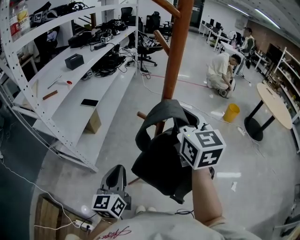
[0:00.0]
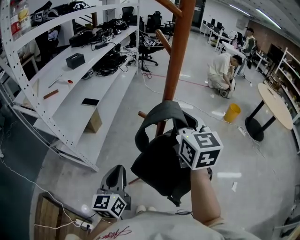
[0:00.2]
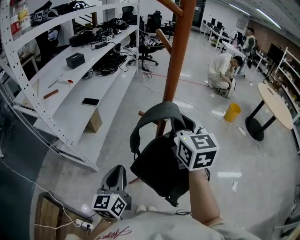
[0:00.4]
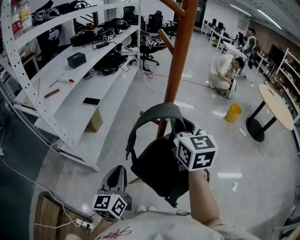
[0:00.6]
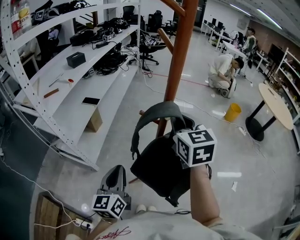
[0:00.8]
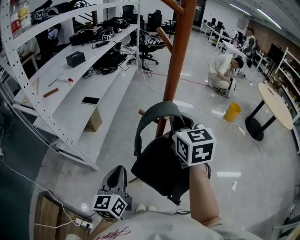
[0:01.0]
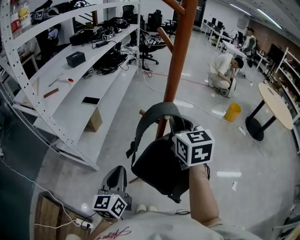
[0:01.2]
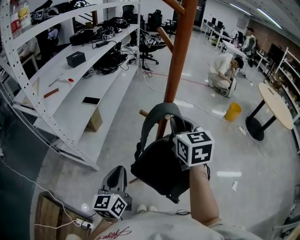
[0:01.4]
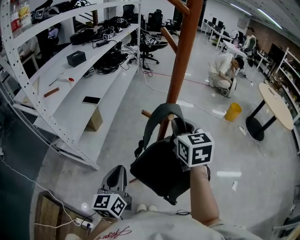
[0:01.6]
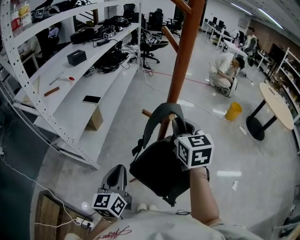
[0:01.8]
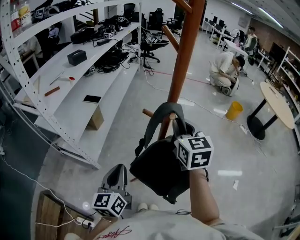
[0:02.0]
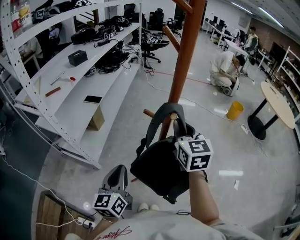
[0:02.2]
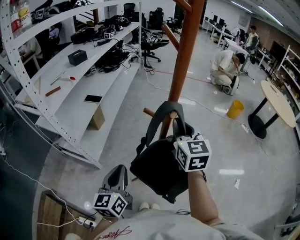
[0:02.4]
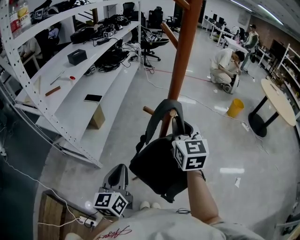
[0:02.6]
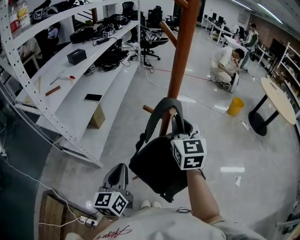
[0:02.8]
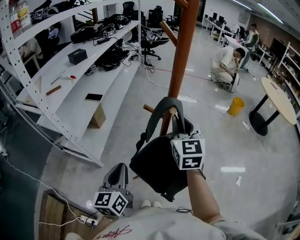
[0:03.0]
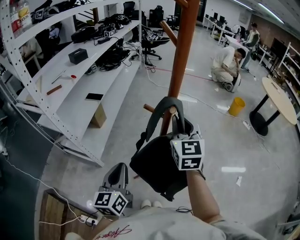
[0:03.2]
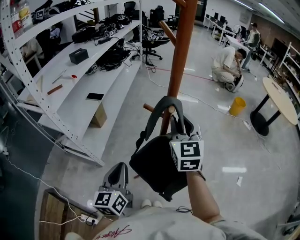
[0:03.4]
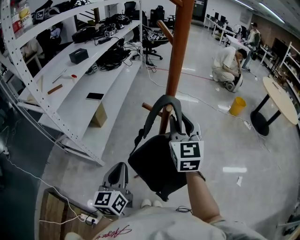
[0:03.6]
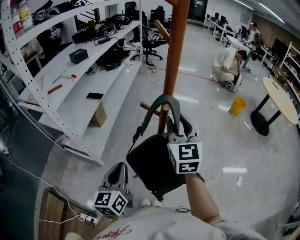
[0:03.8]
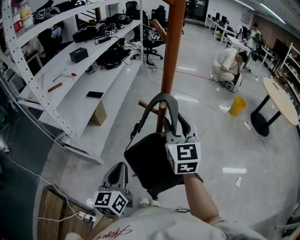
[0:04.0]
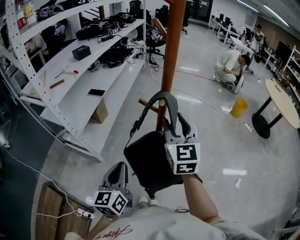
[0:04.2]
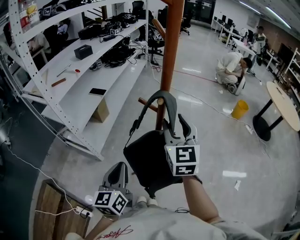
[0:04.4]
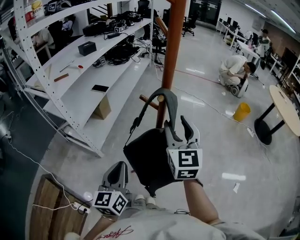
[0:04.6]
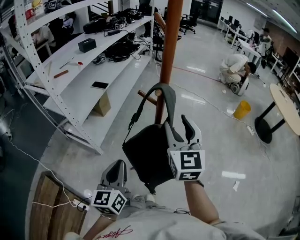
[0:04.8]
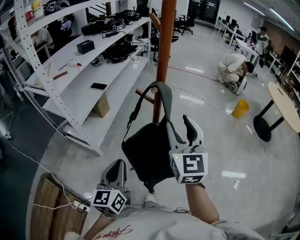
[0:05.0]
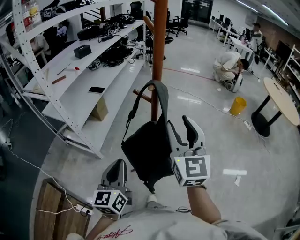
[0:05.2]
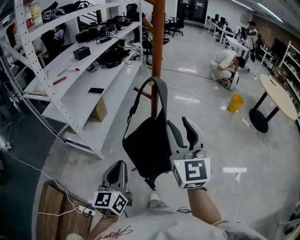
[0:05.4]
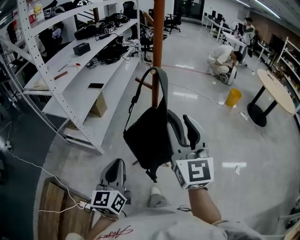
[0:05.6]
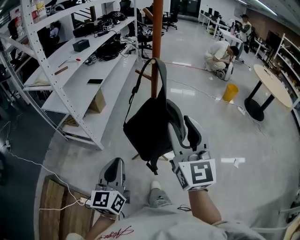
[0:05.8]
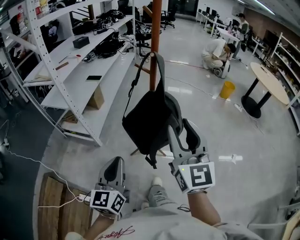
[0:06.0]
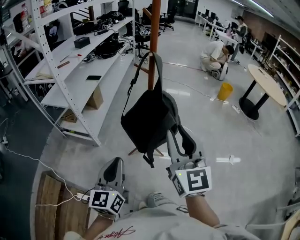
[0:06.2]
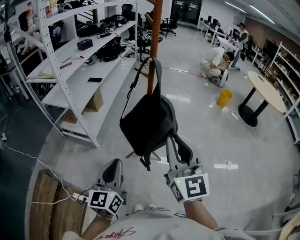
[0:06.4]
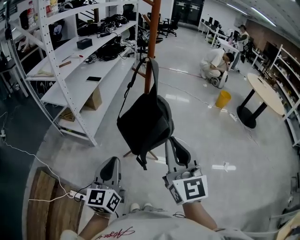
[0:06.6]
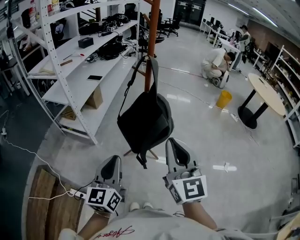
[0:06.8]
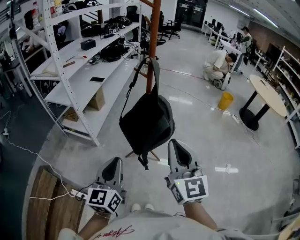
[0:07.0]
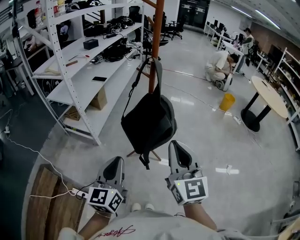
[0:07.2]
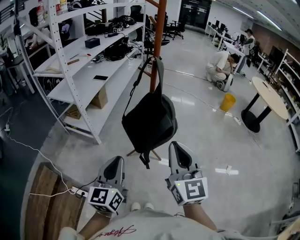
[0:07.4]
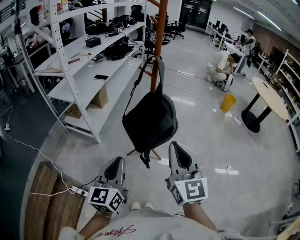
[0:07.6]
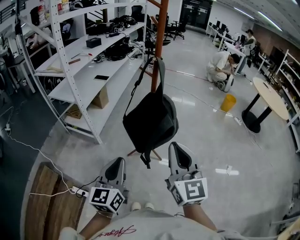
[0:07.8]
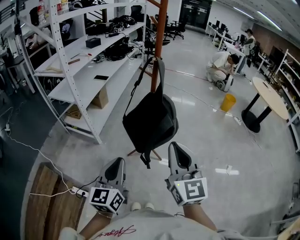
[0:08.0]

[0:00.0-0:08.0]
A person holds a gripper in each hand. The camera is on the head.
0:00.0 to 0:01.6: The right gripper is displaced downward by roughly 10 cm.
0:01.6 to 0:03.2: The grippers move only a little.
0:03.2 to 0:04.8: The two grippers go approximately 5 cm backward. The right gripper opens up.
0:04.8 to 0:06.4: The two grippers go about 25 cm backward. The right gripper closes up.
0:06.4 to 0:08.0: There are only small adjustments of the grippers.

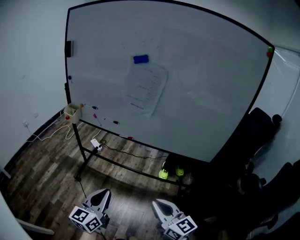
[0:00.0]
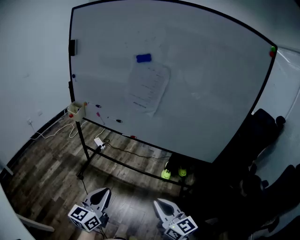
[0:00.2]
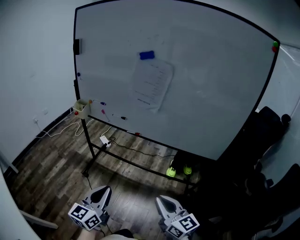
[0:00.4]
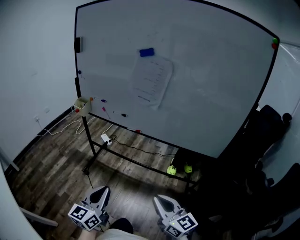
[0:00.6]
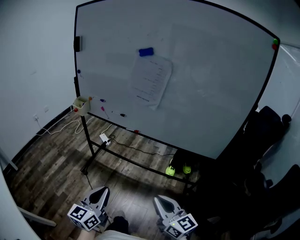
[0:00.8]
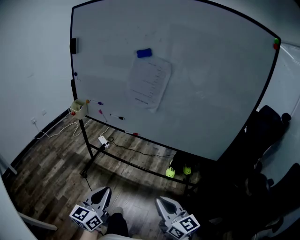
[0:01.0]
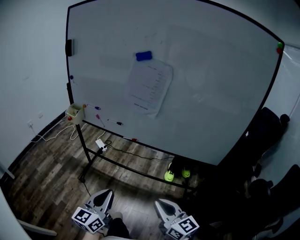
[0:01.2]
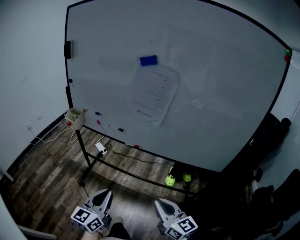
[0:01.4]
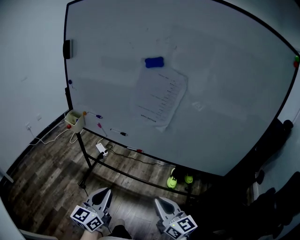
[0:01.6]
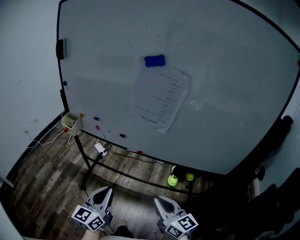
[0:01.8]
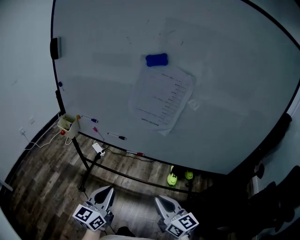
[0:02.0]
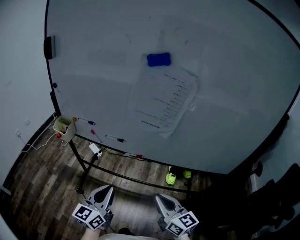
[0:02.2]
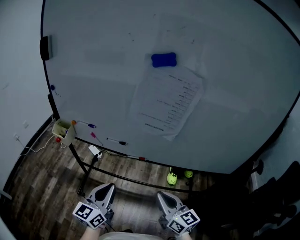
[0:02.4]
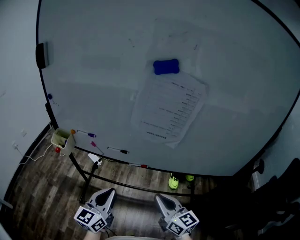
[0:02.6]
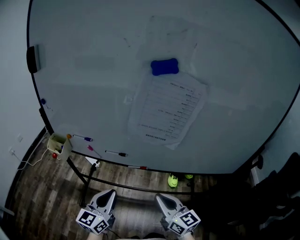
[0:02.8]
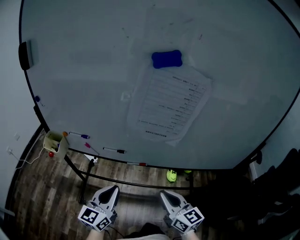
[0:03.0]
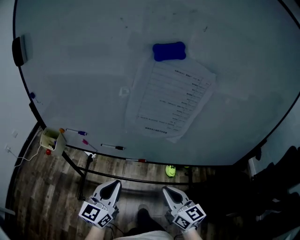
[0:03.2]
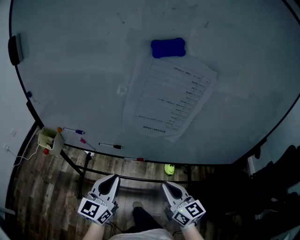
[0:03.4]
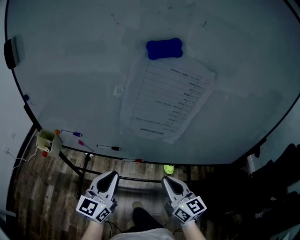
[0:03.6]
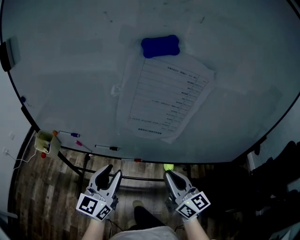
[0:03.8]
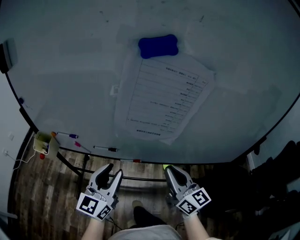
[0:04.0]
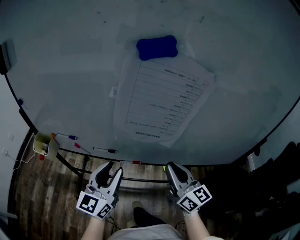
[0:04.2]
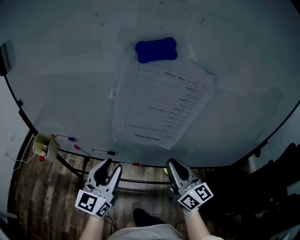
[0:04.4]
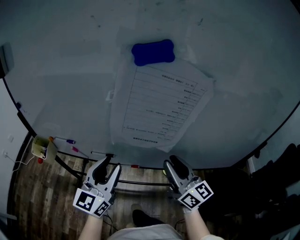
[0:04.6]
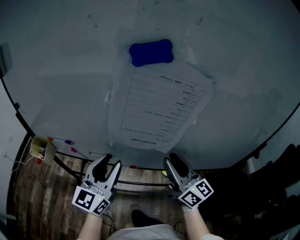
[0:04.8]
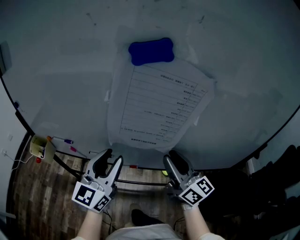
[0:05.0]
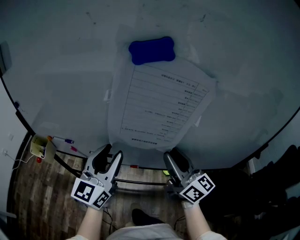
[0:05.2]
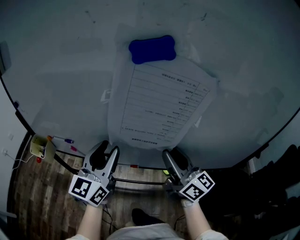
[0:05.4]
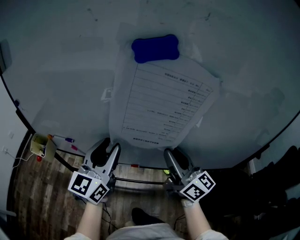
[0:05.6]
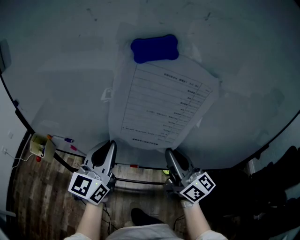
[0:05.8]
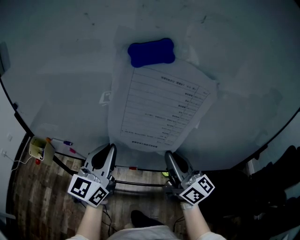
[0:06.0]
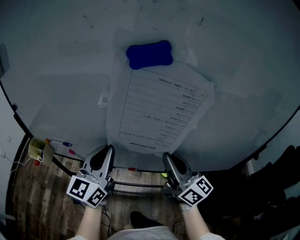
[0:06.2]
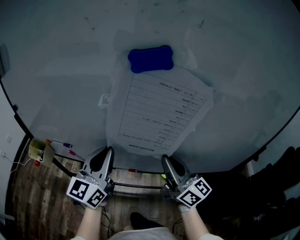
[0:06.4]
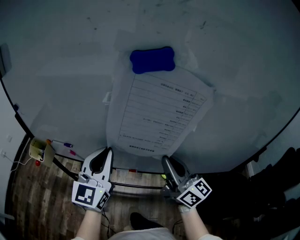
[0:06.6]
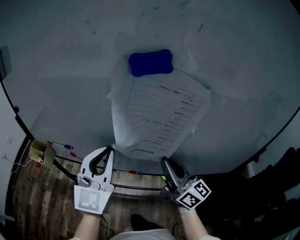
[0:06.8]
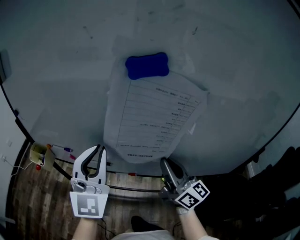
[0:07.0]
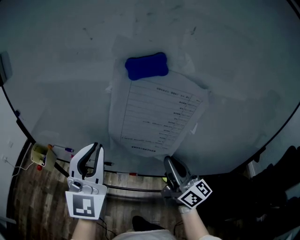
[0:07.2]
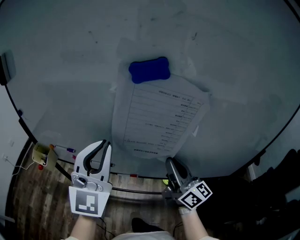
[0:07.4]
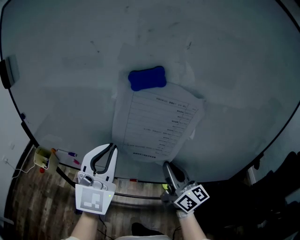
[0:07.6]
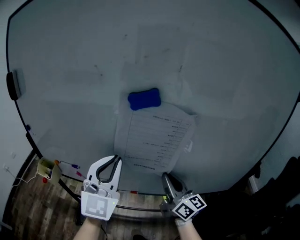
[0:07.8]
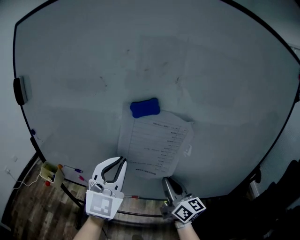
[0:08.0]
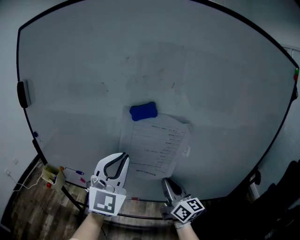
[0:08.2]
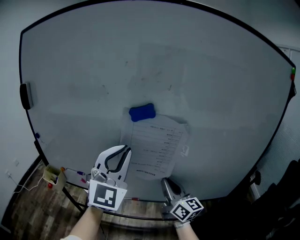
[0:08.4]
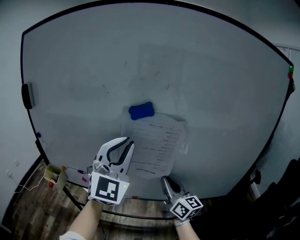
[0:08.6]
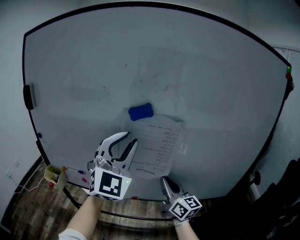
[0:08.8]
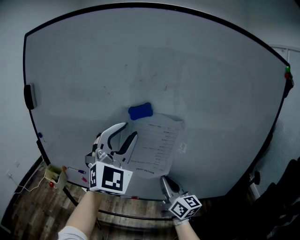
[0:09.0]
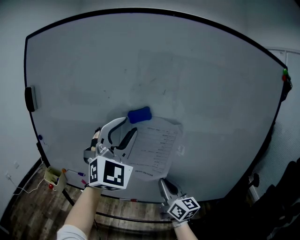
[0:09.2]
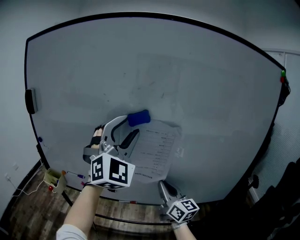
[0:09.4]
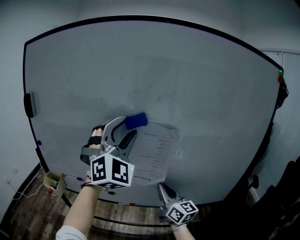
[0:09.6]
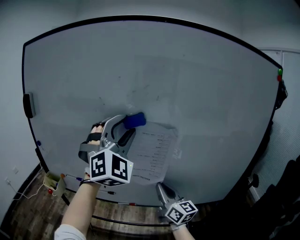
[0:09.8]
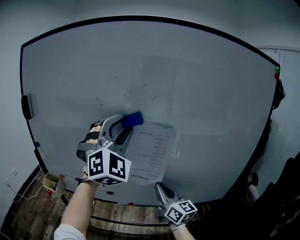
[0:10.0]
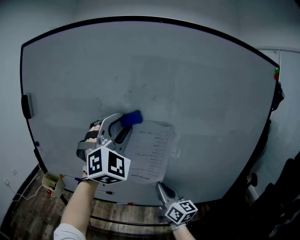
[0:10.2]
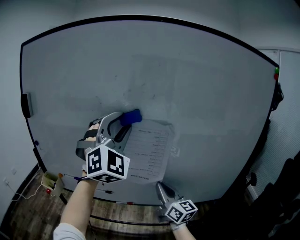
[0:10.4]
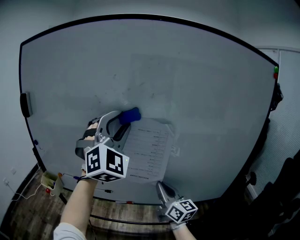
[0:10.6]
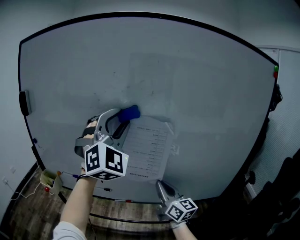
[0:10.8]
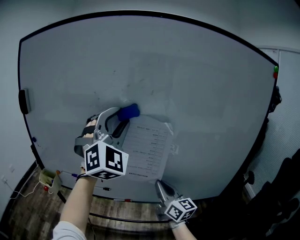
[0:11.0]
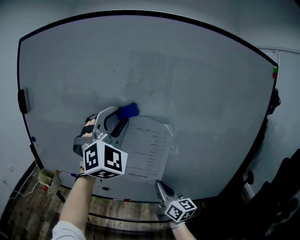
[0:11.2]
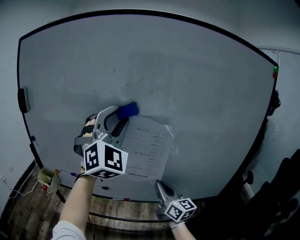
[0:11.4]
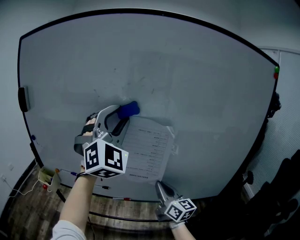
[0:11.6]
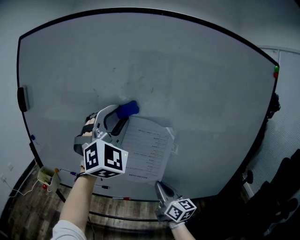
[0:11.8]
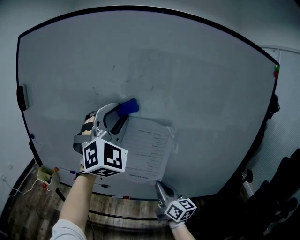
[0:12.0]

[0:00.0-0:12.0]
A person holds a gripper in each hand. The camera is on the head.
0:00.0 to 0:01.6: Both grippers travel together forward, about 15 cm.
0:01.6 to 0:03.0: The two grippers go approximately 20 cm forward.
0:03.0 to 0:04.4: The left gripper shifts about 15 cm forward and upward, and opens up; the right gripper goes some 15 cm forward, upward and to the right.
0:04.4 to 0:06.0: The right gripper changes place by roughly 5 cm, and opens and closes again. Meanwhile the left gripper shifts some 10 cm forward and upward, and closes.
0:06.0 to 0:07.6: The left gripper moves upward, approximately 10 cm, and rotates about 30 degrees.
0:07.6 to 0:09.0: The left gripper heads upward and to the right, covering about 15 cm, rotates about 30 degrees, and opens.
0:09.0 to 0:10.4: The left gripper moves about 5 cm.
0:10.4 to 0:12.0: The grippers stay close to where they were, moving slightly.

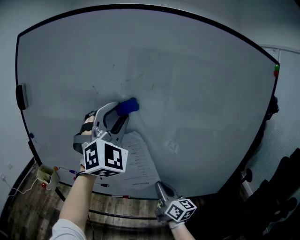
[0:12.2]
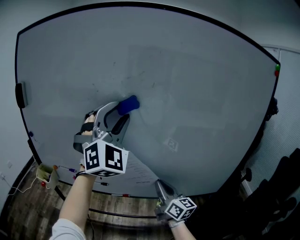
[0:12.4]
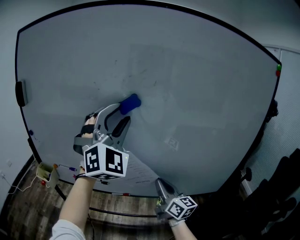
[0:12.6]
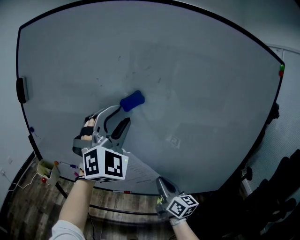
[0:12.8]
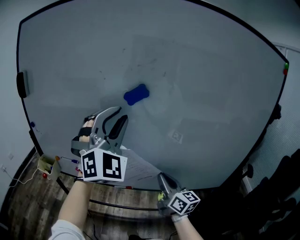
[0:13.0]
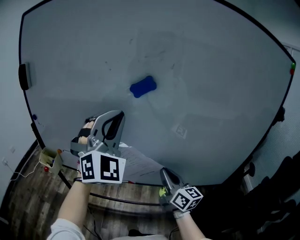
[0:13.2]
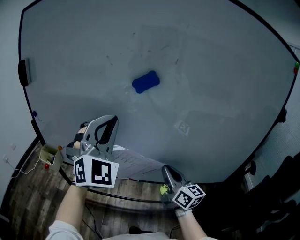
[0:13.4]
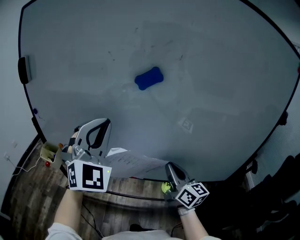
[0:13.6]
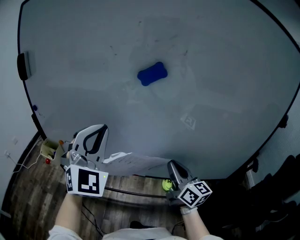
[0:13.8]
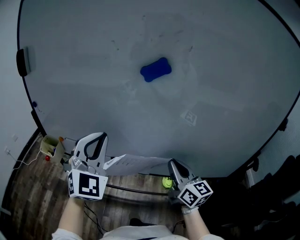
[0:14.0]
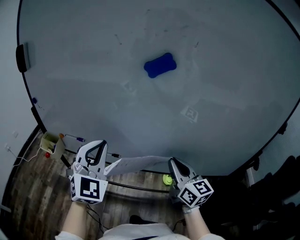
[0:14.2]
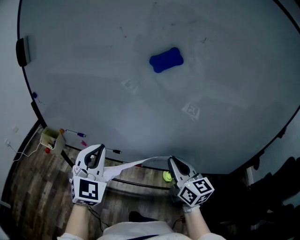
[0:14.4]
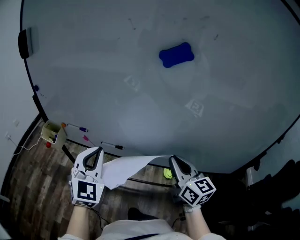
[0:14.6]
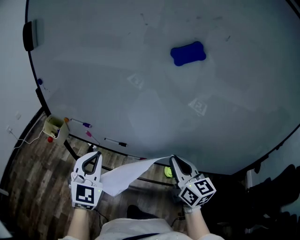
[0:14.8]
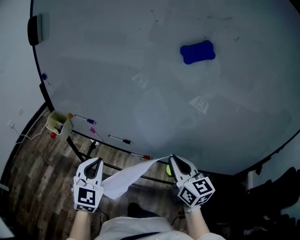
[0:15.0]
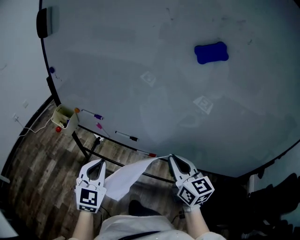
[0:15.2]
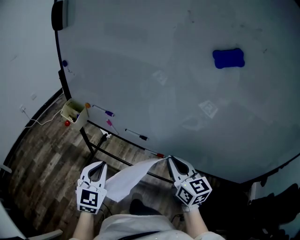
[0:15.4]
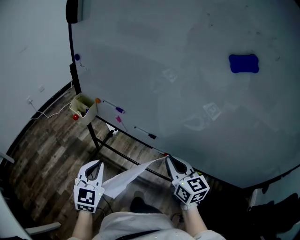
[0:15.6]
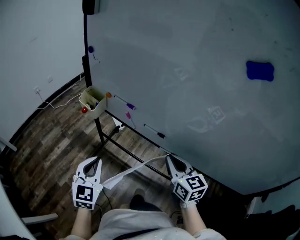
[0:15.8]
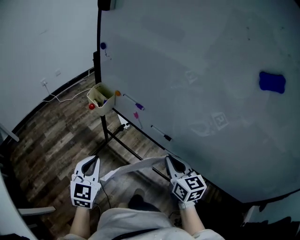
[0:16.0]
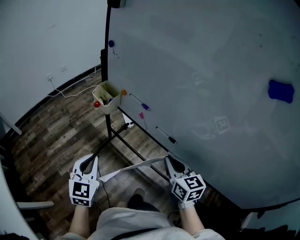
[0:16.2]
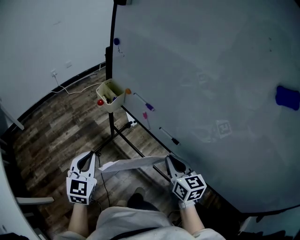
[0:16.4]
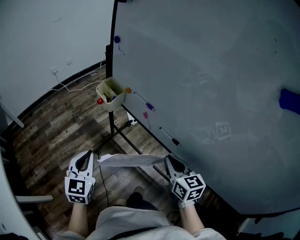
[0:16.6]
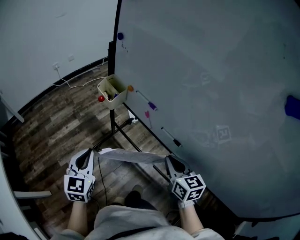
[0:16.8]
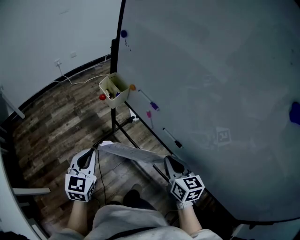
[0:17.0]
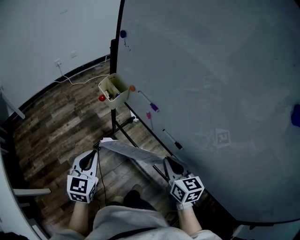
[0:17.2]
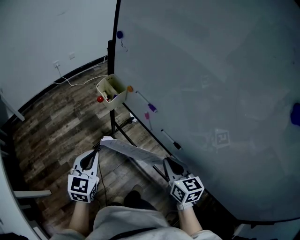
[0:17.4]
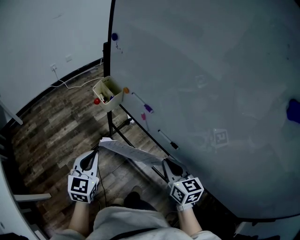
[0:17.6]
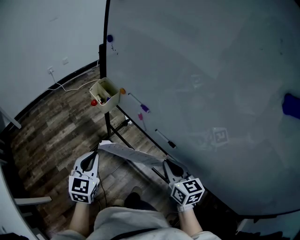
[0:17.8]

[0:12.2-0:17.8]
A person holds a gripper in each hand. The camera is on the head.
0:12.2 to 0:13.6: The left gripper travels downward and to the left by some 15 cm, and closes its fingers.
0:13.6 to 0:15.0: The left gripper shifts some 30 cm downward and to the left, and swivels some 40 degrees. Meanwhile the right gripper shifts roughly 5 cm to the left, and rotates about 20 degrees.
0:15.0 to 0:16.4: The right gripper shifts by some 20 cm, and turns by approximately 30 degrees. Meanwhile the left gripper changes place by approximately 20 cm, and changes its angle by roughly 30 degrees.
0:16.4 to 0:17.8: The left gripper ends up roughly 5 cm from where it was.
